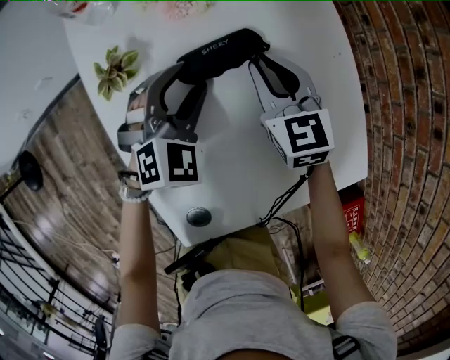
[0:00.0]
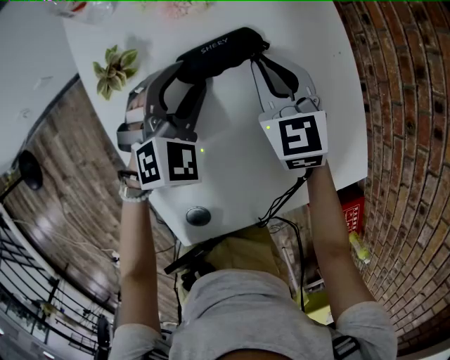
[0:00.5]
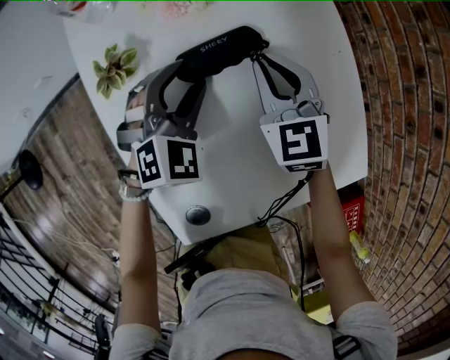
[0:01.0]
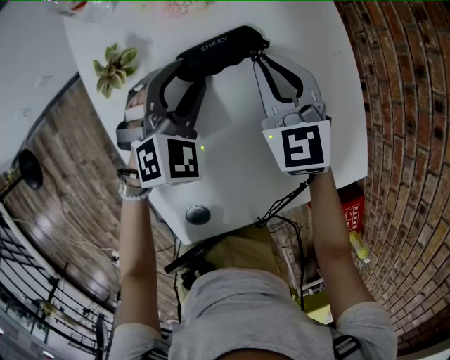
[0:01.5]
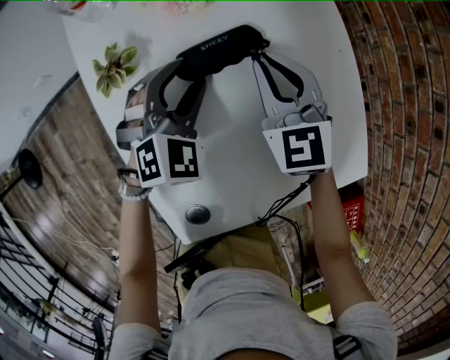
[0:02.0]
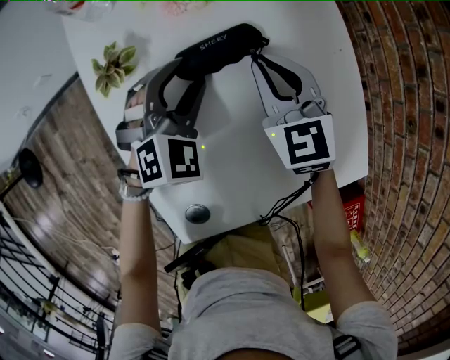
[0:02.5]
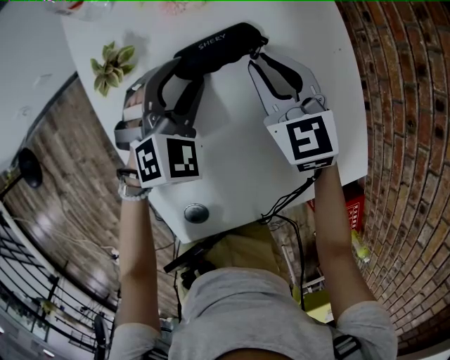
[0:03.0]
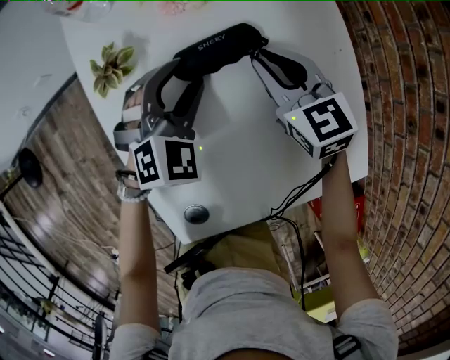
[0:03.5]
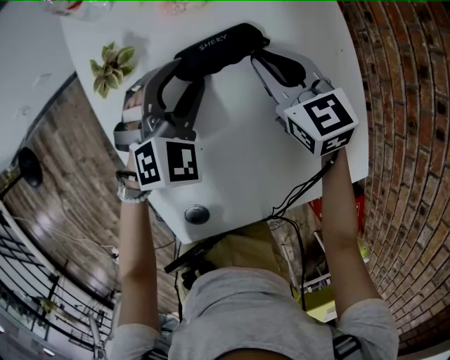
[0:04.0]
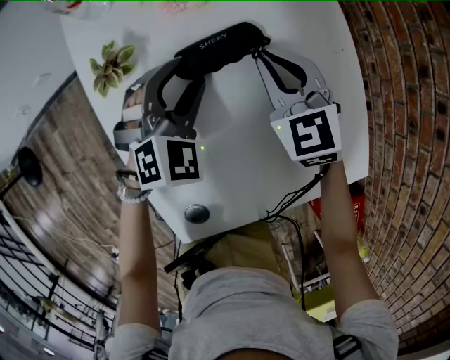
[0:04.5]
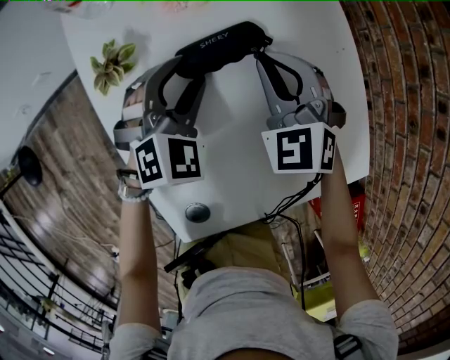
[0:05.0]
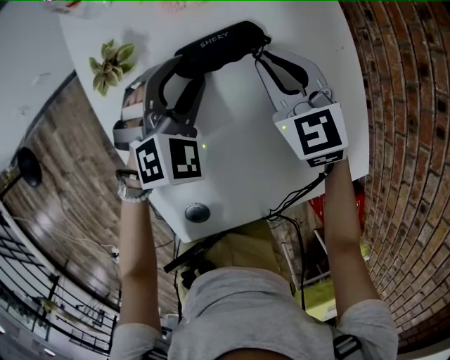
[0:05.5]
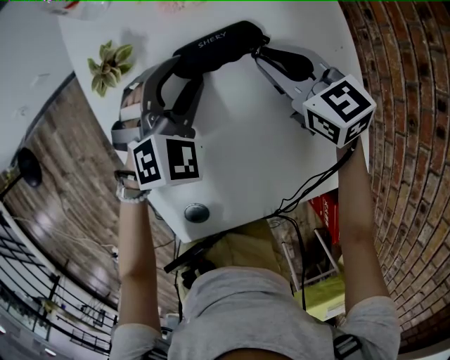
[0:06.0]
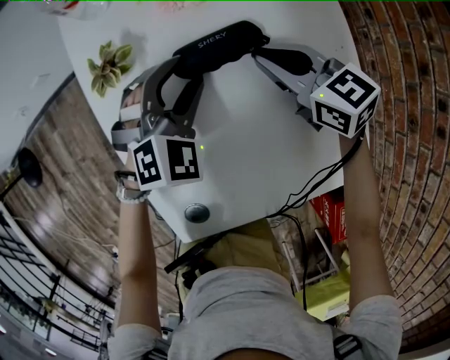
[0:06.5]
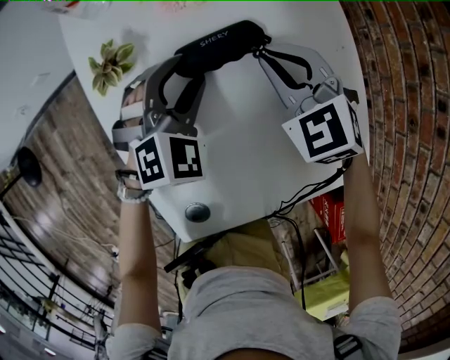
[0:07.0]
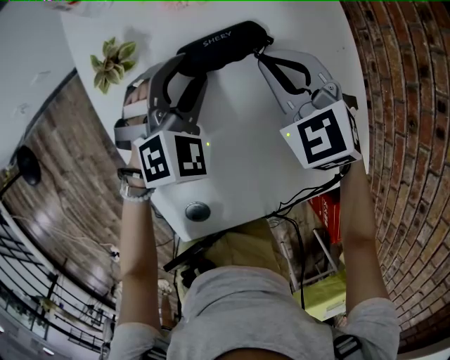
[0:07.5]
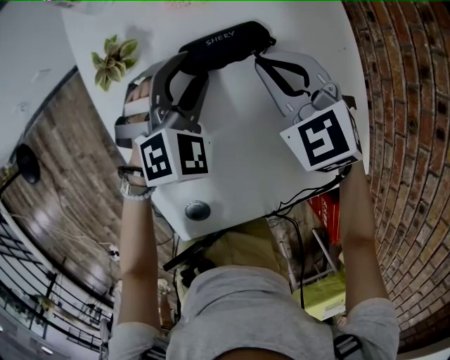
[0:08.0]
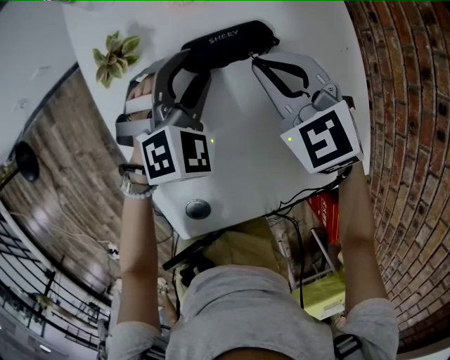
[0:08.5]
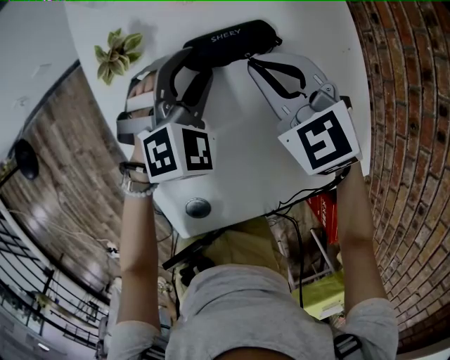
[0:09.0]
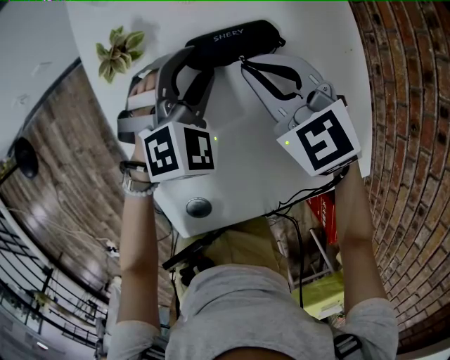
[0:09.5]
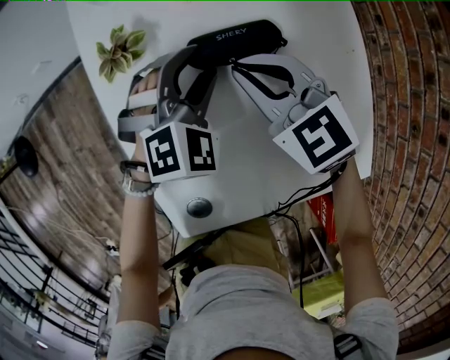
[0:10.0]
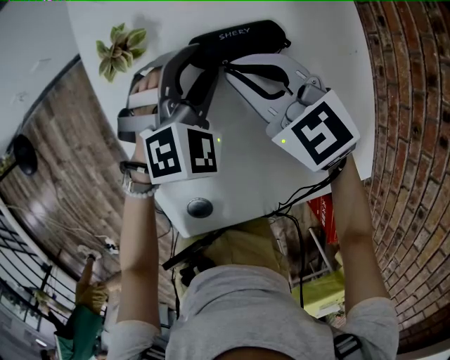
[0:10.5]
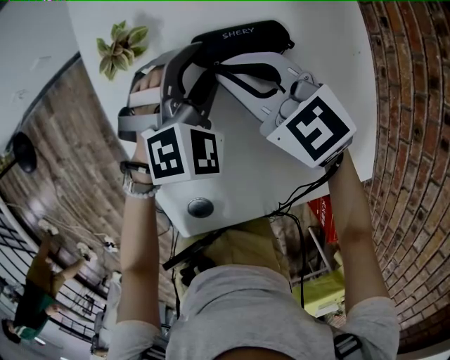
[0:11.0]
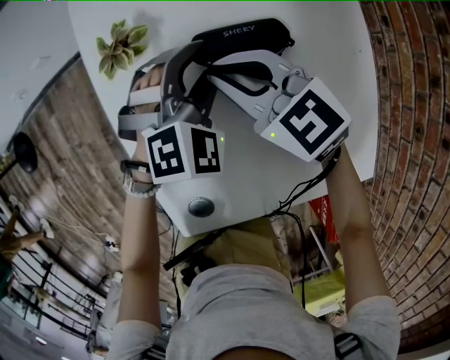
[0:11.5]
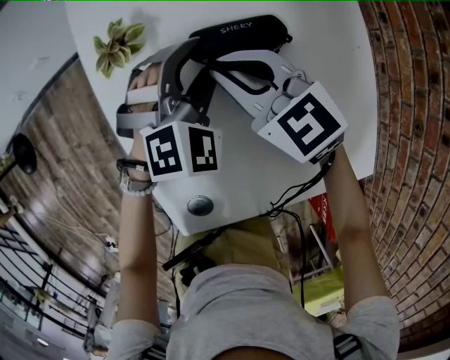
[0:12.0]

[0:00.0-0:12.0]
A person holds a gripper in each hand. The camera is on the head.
0:00.0 to 0:02.0: There are only small adjustments of the grippers.
0:02.0 to 0:04.0: The right gripper changes its angle by approximately 20 degrees.
0:06.0 to 0:08.0: The right gripper changes its angle by some 30 degrees.
0:08.0 to 0:10.0: The right gripper travels to the left by about 5 cm.
0:10.0 to 0:12.0: The grippers make only small movements.

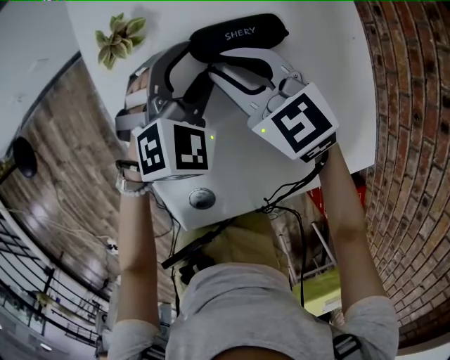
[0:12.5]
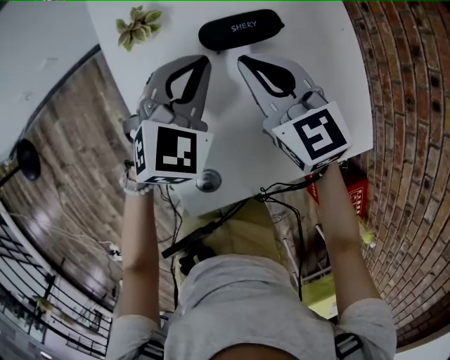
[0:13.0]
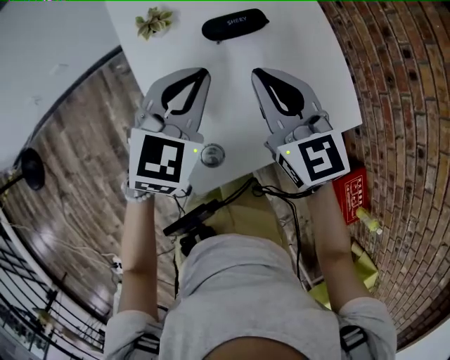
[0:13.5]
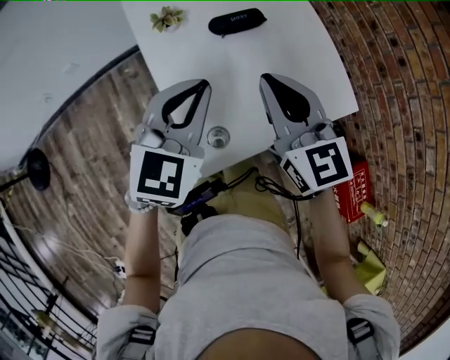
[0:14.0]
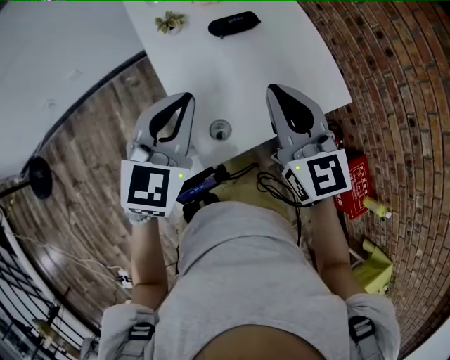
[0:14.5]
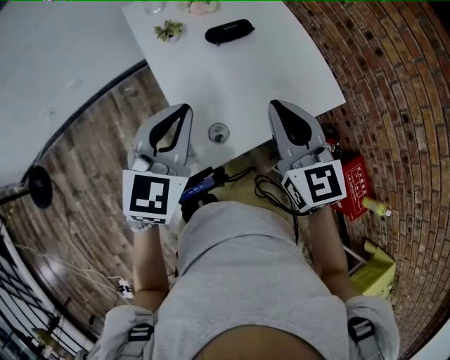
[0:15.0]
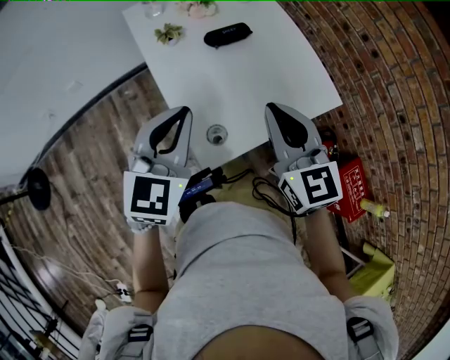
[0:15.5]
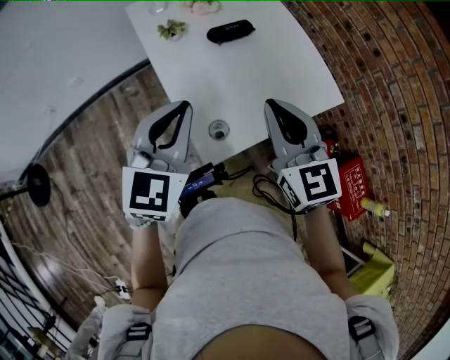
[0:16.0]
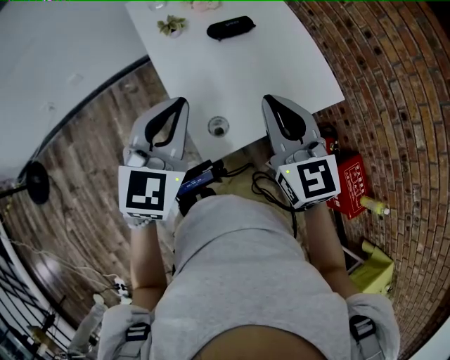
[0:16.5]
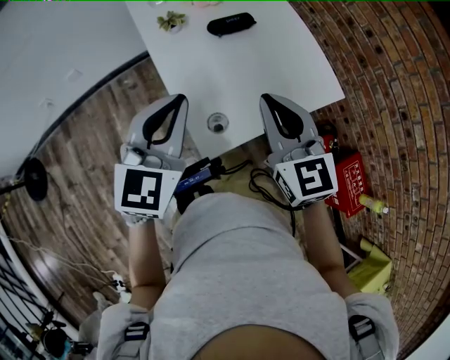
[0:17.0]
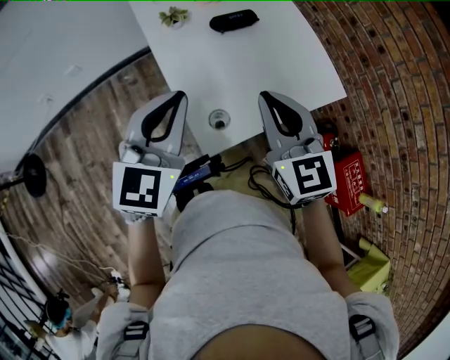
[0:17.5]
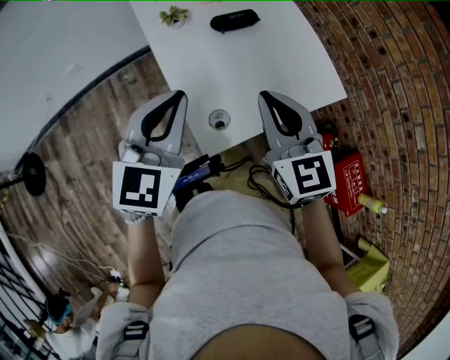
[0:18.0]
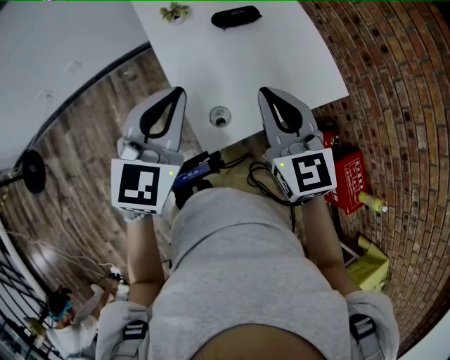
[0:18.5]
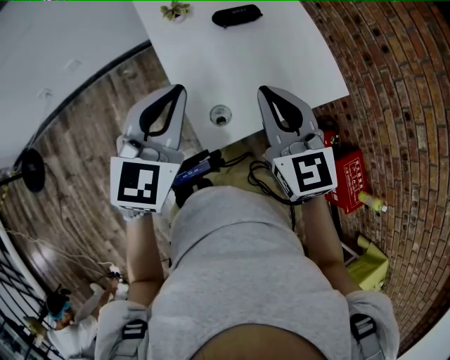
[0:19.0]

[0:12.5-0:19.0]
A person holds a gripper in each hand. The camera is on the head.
0:12.5 to 0:14.5: The grippers both shift backward and upward by roughly 30 cm. The right gripper swivels roughly 40 degrees. The left gripper rotates roughly 30 degrees, and closes up.
0:14.5 to 0:17.0: There are only small adjustments of the grippers.
0:17.0 to 0:19.0: Neither gripper changes place.

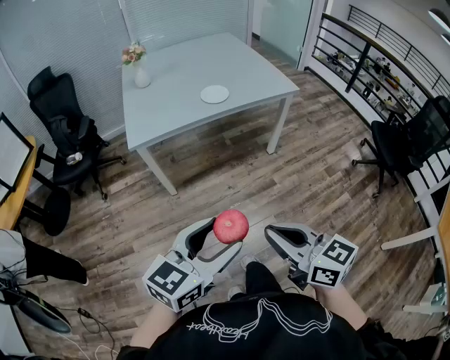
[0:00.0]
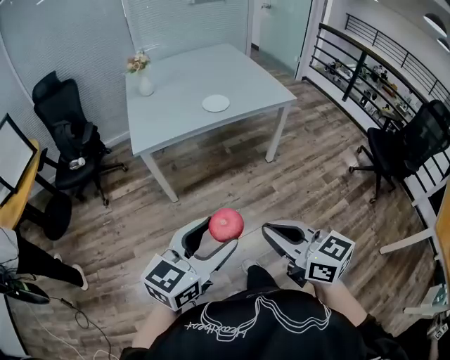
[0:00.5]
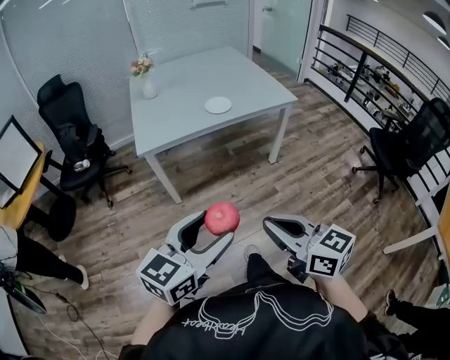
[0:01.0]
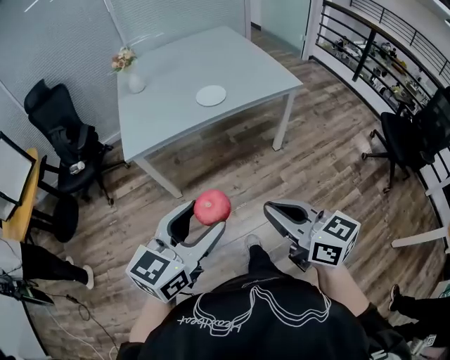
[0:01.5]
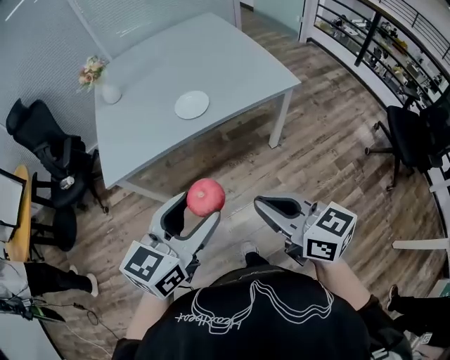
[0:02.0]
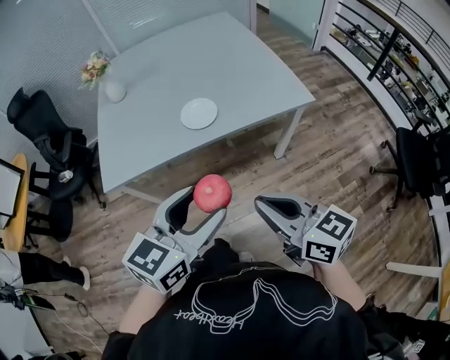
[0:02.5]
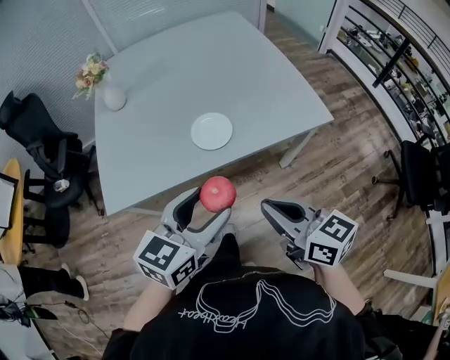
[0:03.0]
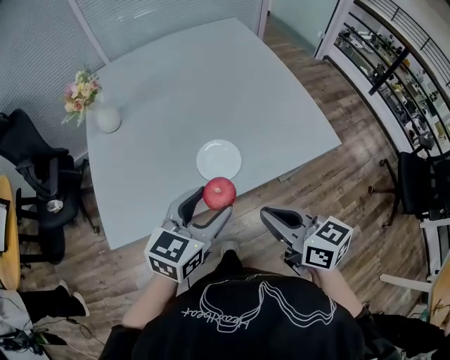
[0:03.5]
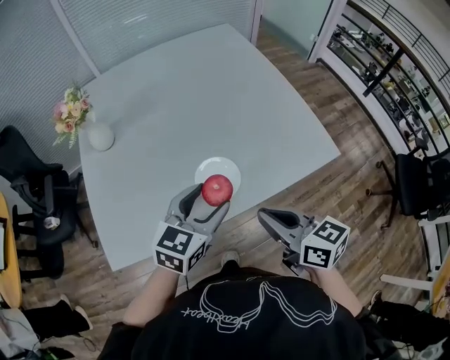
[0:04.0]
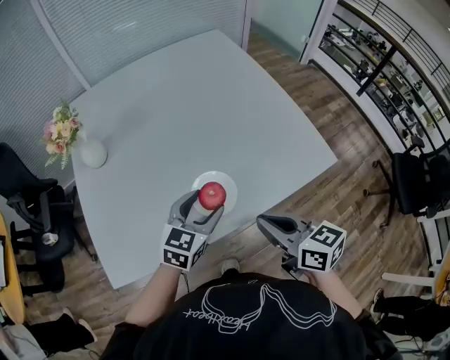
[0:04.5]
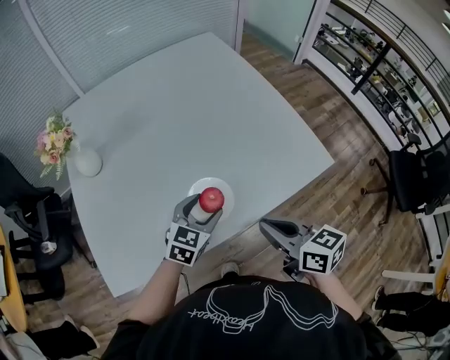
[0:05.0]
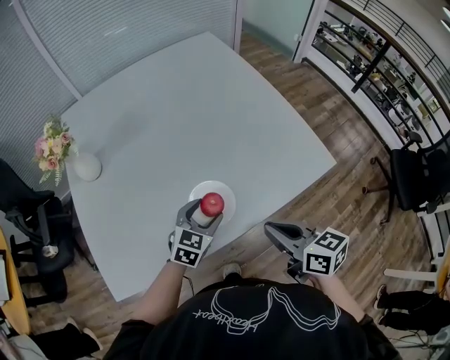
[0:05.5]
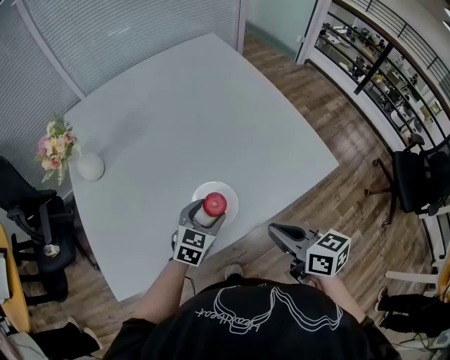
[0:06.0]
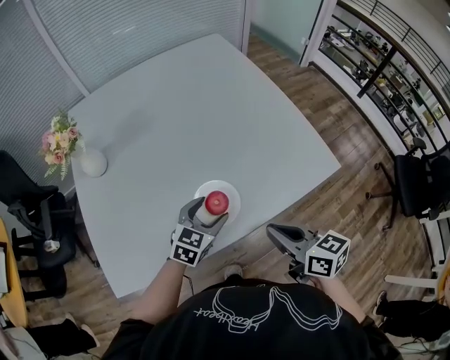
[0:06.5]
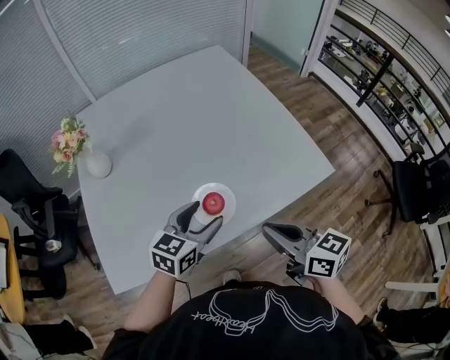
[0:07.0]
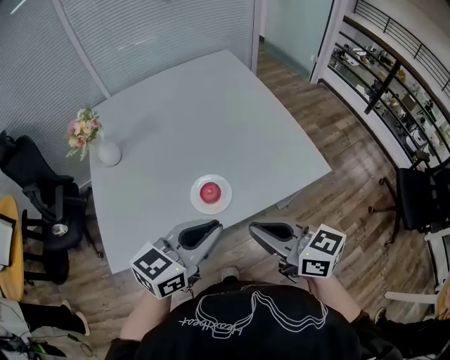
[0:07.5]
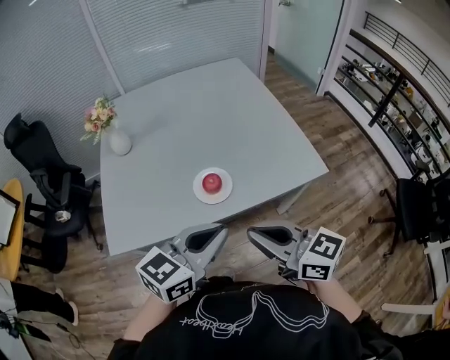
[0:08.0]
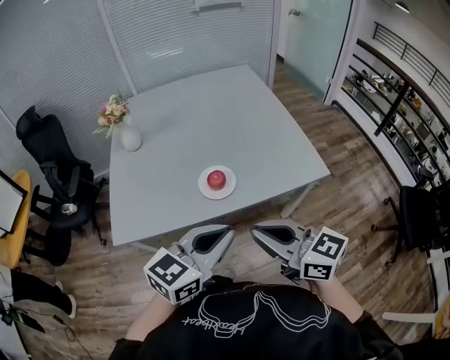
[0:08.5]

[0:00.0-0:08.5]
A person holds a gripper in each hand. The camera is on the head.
0:00.0 to 0:02.0: Both grippers travel together forward, some 30 cm.
0:02.0 to 0:04.0: Both grippers travel together forward, roughly 40 cm.
0:04.0 to 0:06.5: The right gripper moves about 5 cm; the left gripper shifts some 15 cm downward and forward.
0:06.5 to 0:08.5: The right gripper moves backward and upward, some 20 cm, and changes its angle by roughly 30 degrees, while the left gripper travels backward and upward by some 35 cm, swivels roughly 20 degrees, and closes its fingers.
